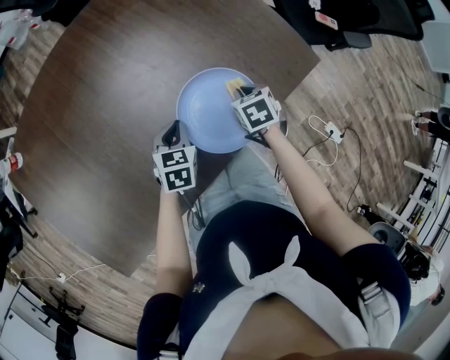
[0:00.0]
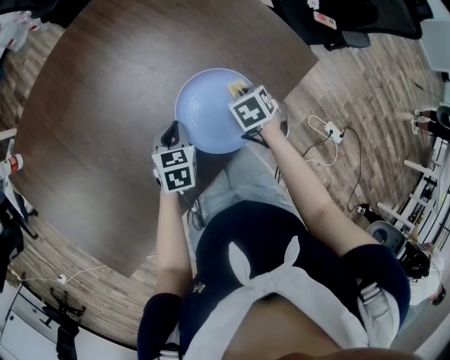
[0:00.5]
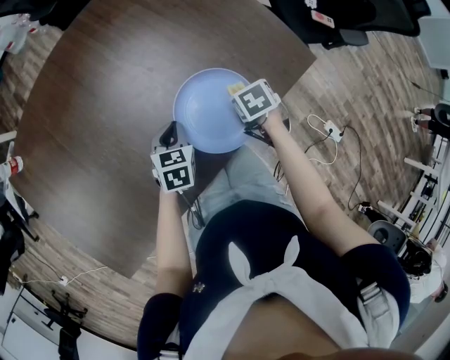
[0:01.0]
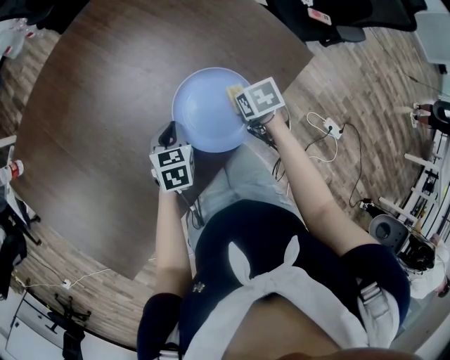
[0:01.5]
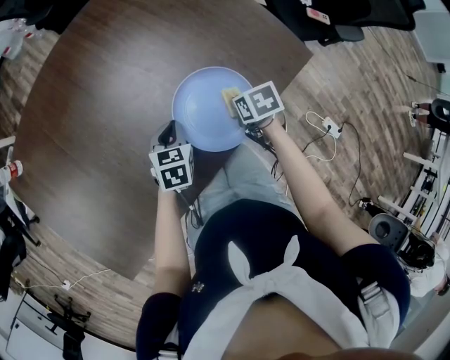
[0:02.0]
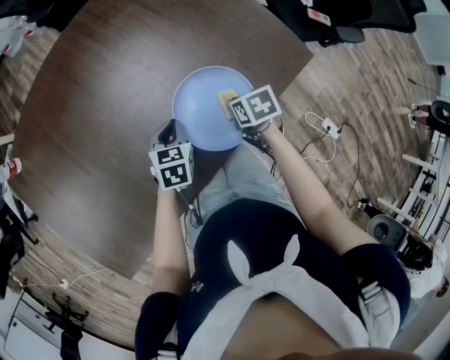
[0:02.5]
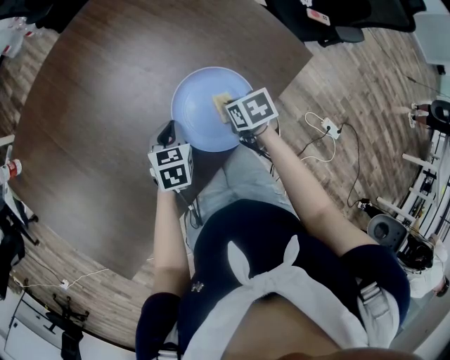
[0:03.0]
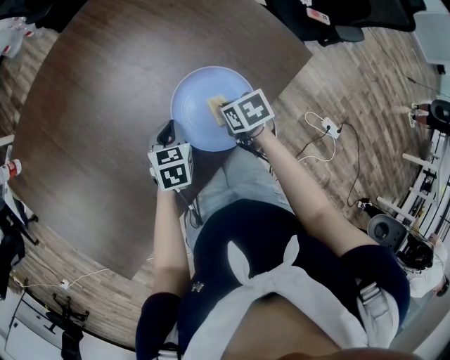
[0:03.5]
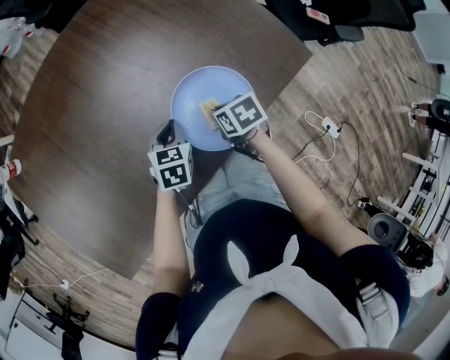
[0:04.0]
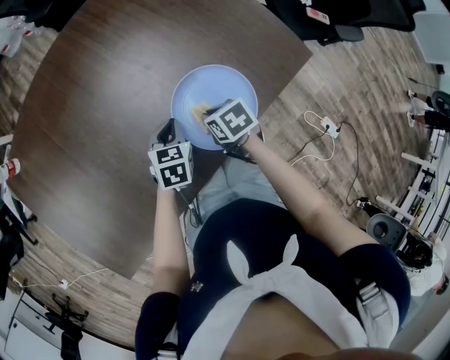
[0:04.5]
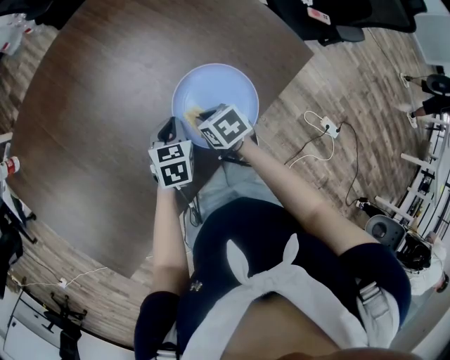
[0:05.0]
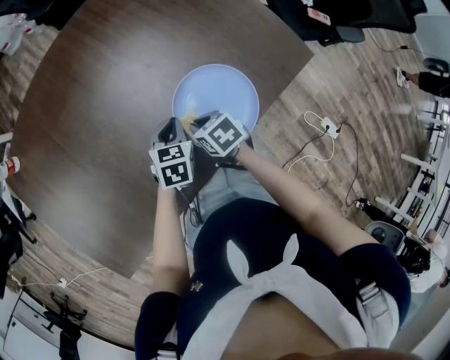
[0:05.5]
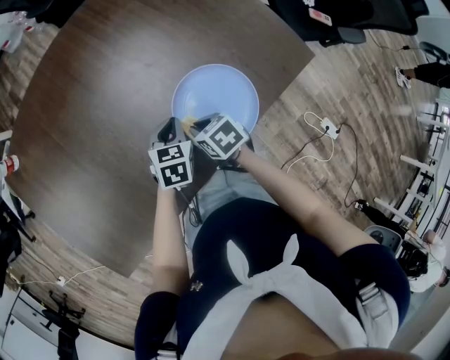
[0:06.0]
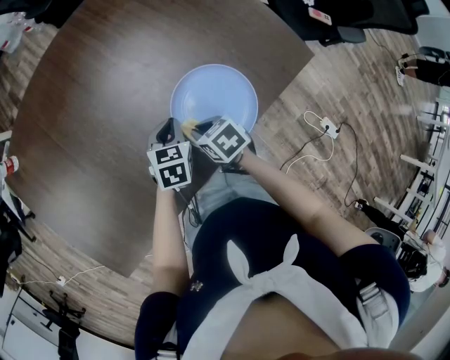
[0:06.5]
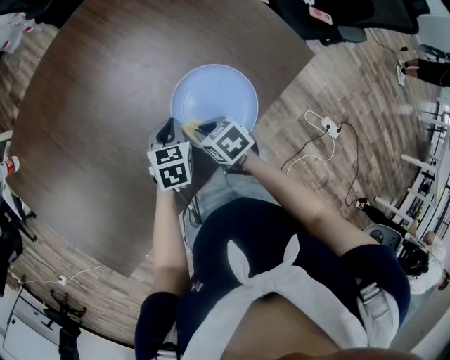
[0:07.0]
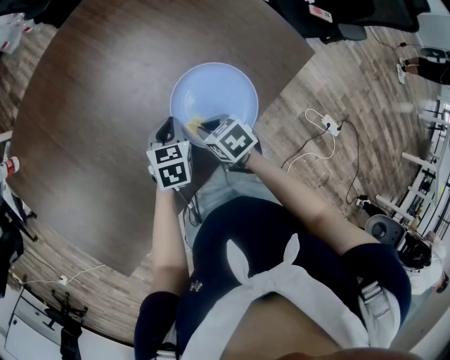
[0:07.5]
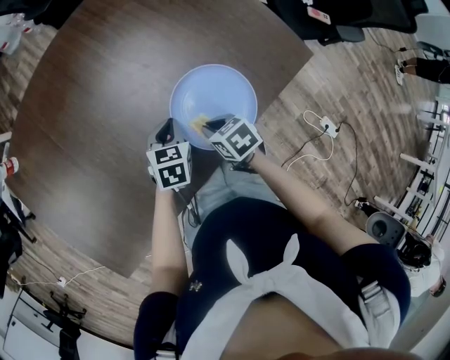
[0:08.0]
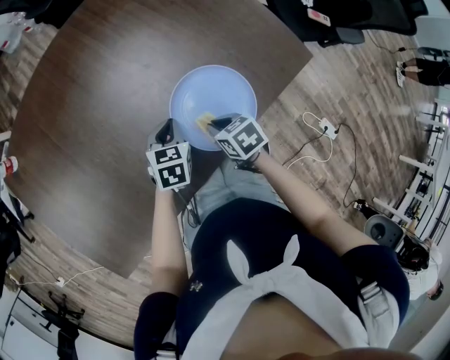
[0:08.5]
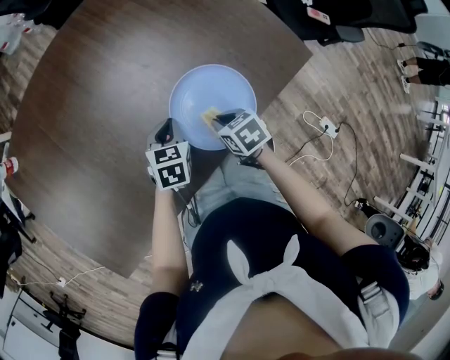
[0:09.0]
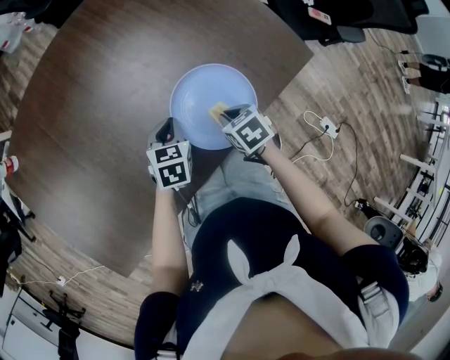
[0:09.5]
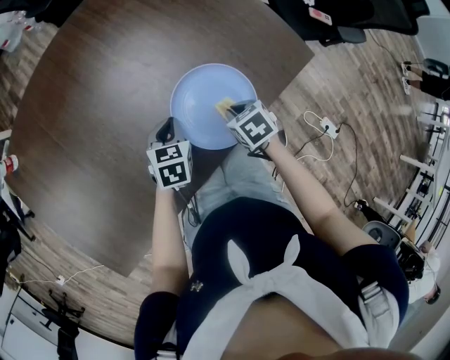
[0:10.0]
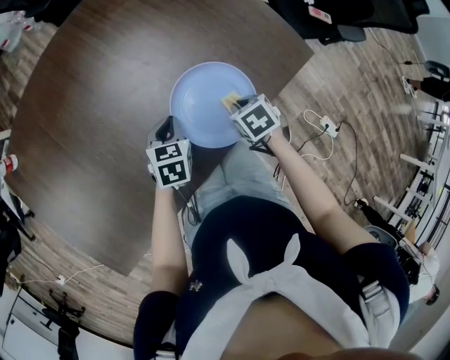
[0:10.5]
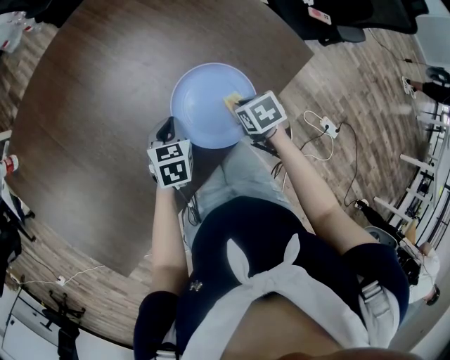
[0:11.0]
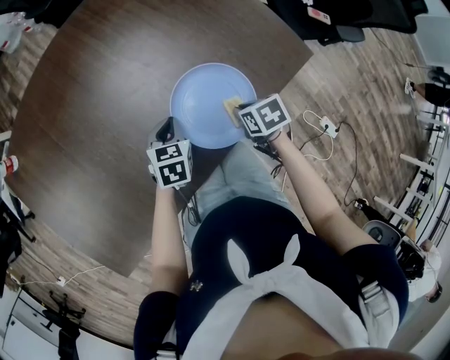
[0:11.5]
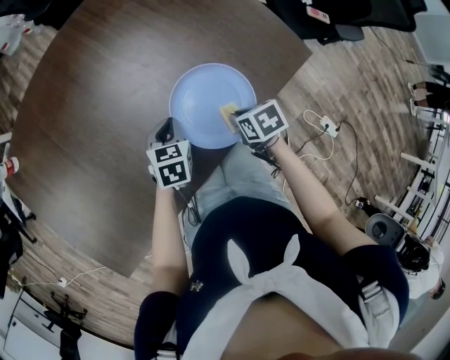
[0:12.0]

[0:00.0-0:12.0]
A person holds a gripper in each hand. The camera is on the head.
0:00.0 to 0:02.0: The right gripper swivels some 20 degrees.
0:02.0 to 0:04.0: The right gripper moves to the left, roughly 5 cm.
0:04.0 to 0:06.0: The right gripper shifts approximately 10 cm to the left.
0:06.0 to 0:08.0: There are only small adjustments of the grippers.
0:08.0 to 0:10.0: The right gripper moves to the right, roughly 10 cm.
0:10.0 to 0:12.0: The grippers move only a little.

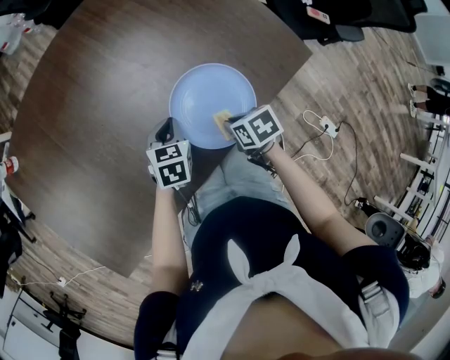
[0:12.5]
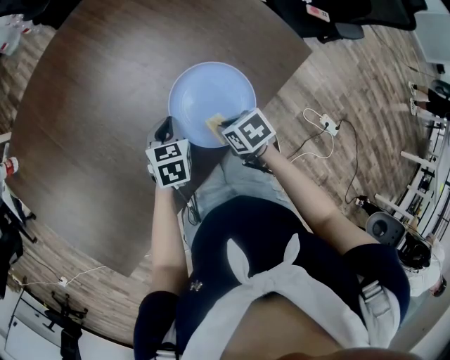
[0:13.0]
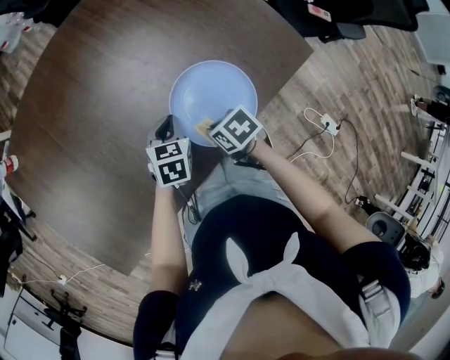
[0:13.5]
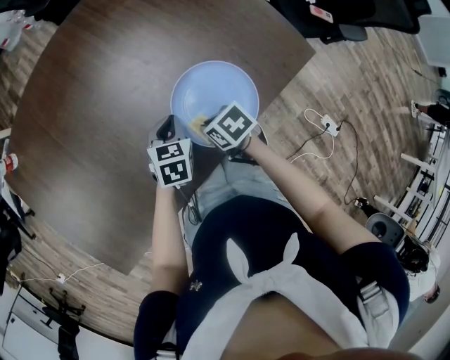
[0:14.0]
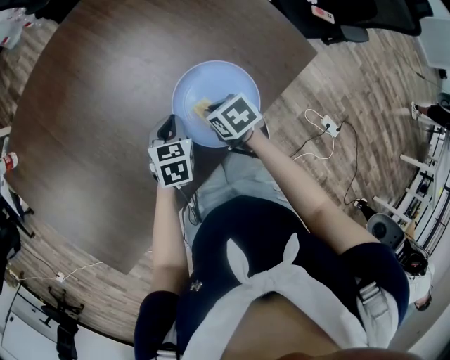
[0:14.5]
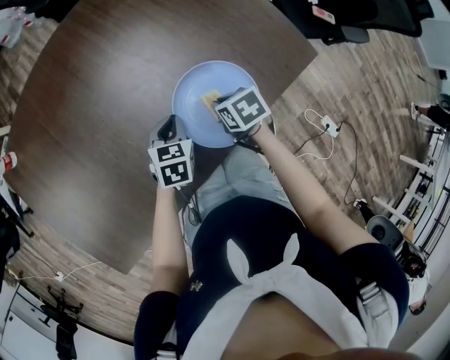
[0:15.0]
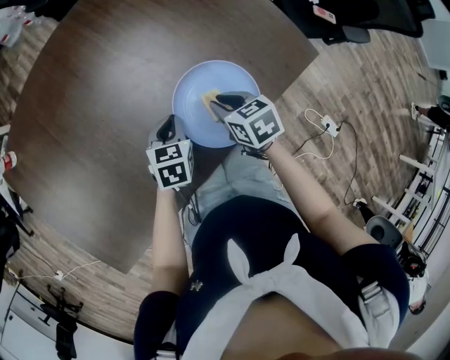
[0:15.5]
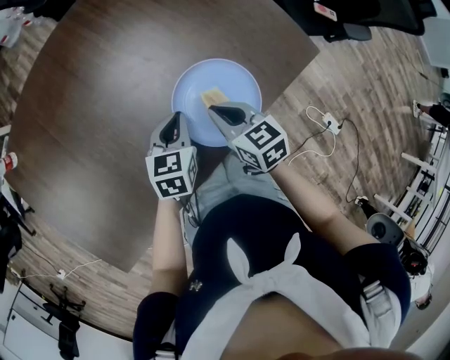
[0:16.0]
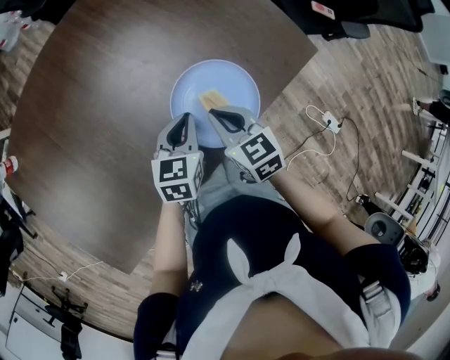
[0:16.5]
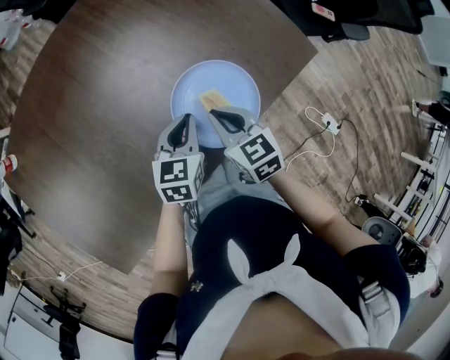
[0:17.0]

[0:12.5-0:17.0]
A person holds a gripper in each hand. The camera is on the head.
0:12.5 to 0:14.5: The right gripper travels forward by about 5 cm.
0:14.5 to 0:17.0: The right gripper travels upward by about 10 cm, and turns by about 30 degrees; the left gripper moves upward, about 5 cm.

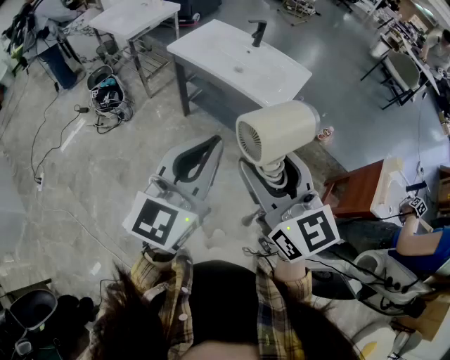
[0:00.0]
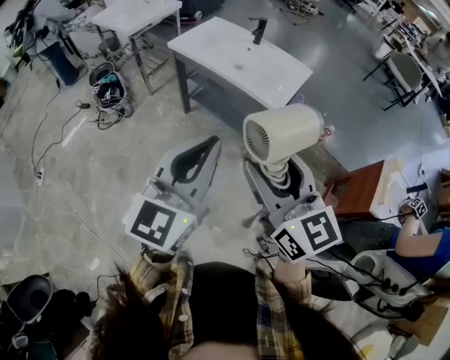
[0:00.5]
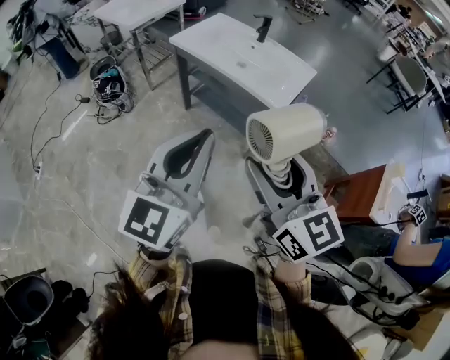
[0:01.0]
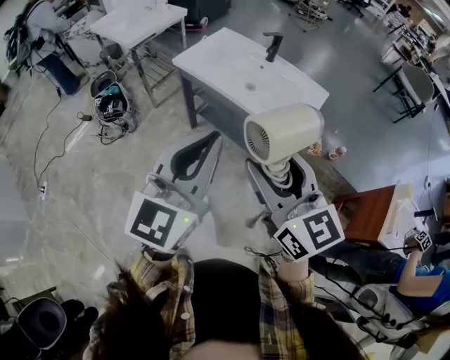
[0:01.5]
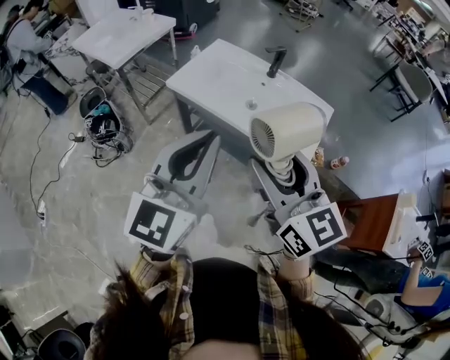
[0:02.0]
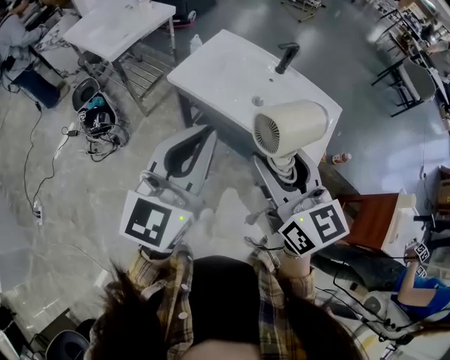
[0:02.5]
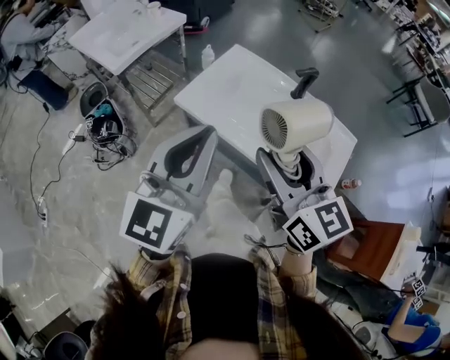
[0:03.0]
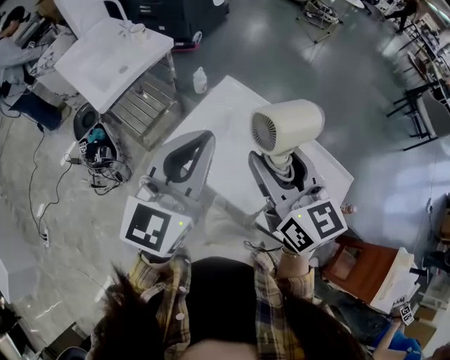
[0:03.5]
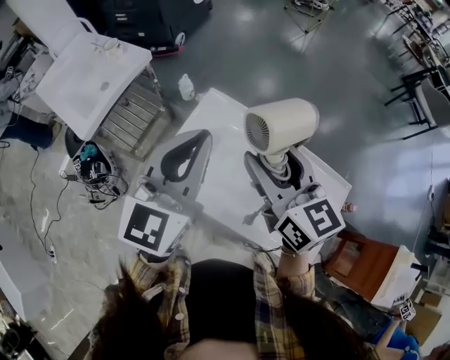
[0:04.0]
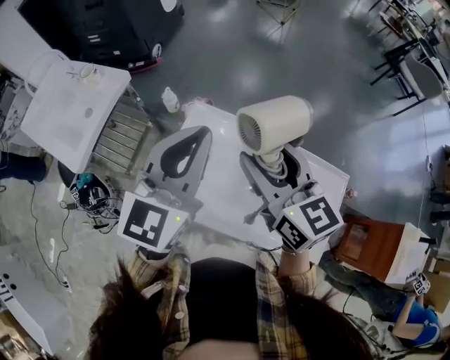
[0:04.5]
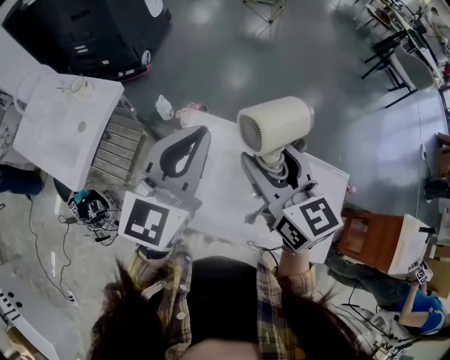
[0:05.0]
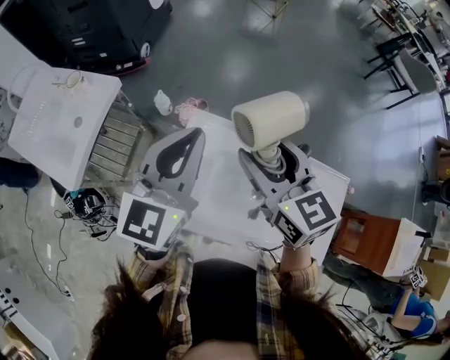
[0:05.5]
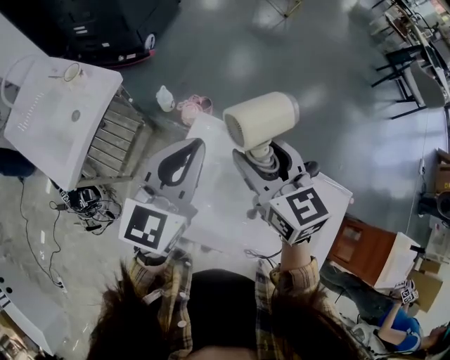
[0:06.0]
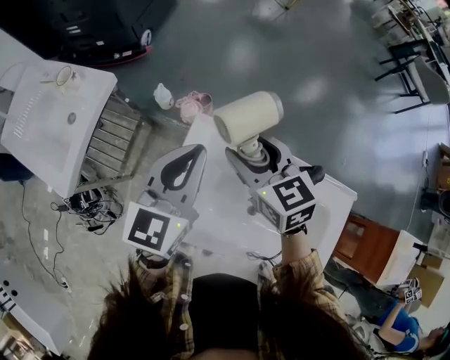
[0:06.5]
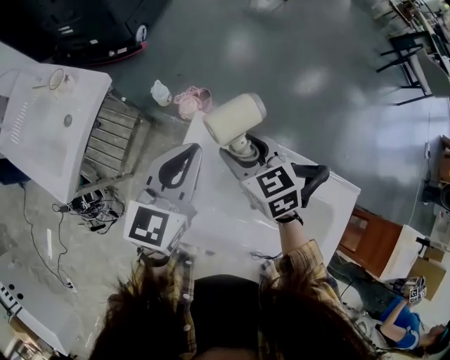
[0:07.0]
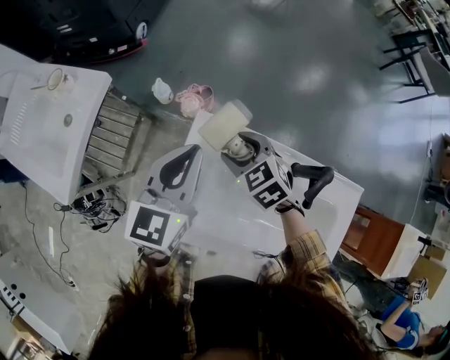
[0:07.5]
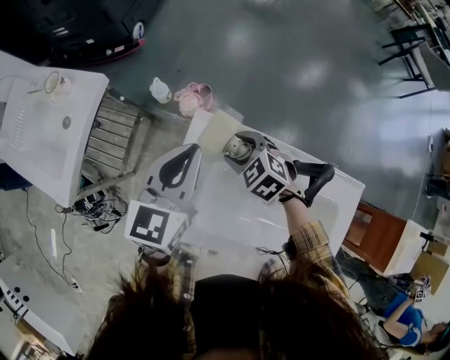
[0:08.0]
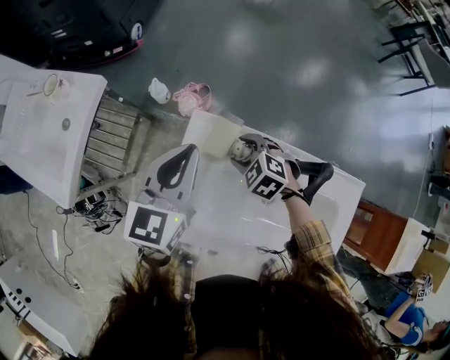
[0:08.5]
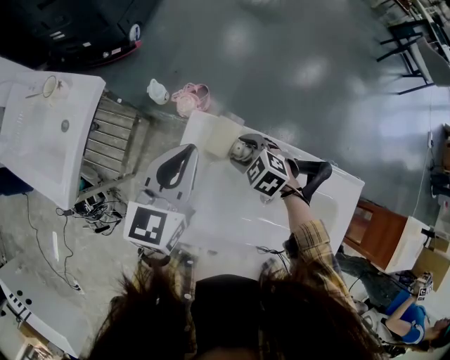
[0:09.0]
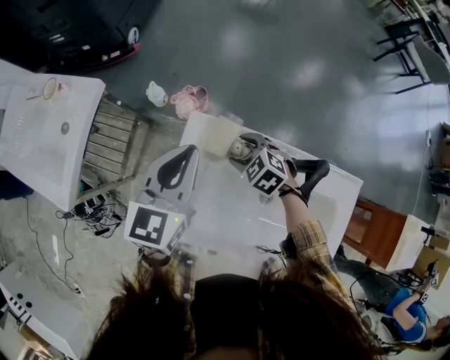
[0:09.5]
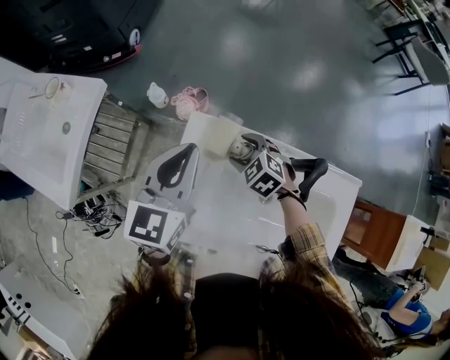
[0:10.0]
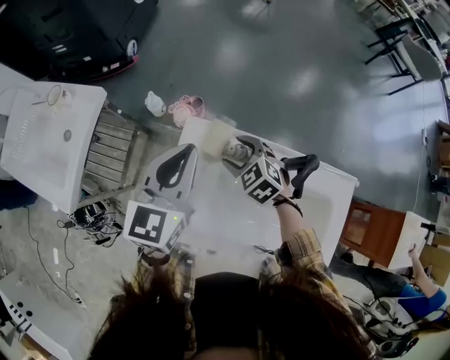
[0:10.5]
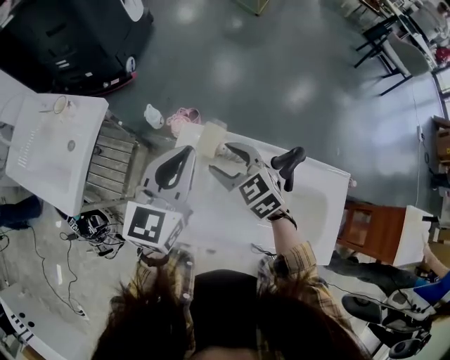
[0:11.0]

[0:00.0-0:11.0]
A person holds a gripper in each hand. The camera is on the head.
0:00.0 to 0:02.0: The grippers both shift forward by approximately 25 cm.
0:02.0 to 0:03.5: Both grippers travel together forward, roughly 35 cm.
0:03.5 to 0:05.5: Both grippers travel together forward, roughly 20 cm.
0:05.5 to 0:07.5: The left gripper goes some 15 cm downward and forward, while the right gripper travels downward by about 25 cm, and angles its fingers downward, by roughly 30 degrees.
0:07.5 to 0:09.0: The right gripper shifts roughly 5 cm downward.
0:09.0 to 0:11.0: The right gripper is displaced upward by about 15 cm, and rotates approximately 30 degrees; the left gripper shifts roughly 5 cm upward.
